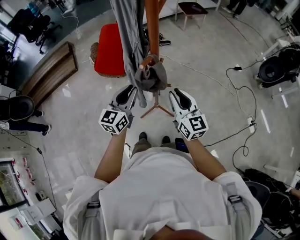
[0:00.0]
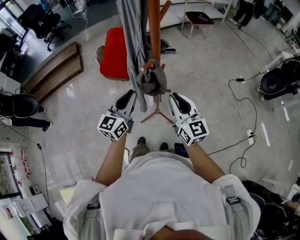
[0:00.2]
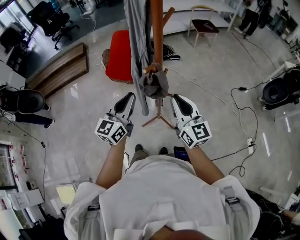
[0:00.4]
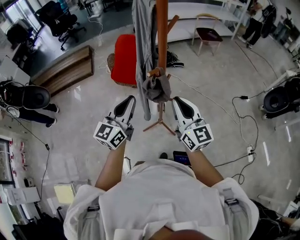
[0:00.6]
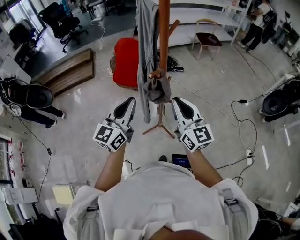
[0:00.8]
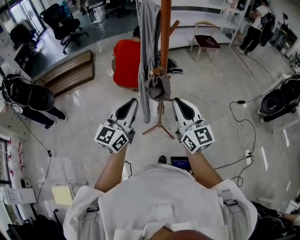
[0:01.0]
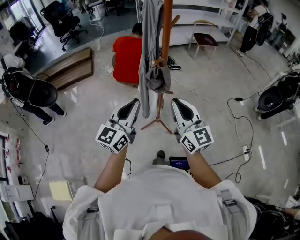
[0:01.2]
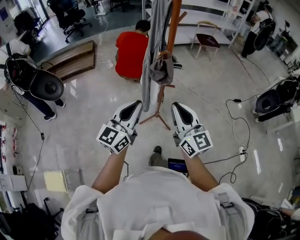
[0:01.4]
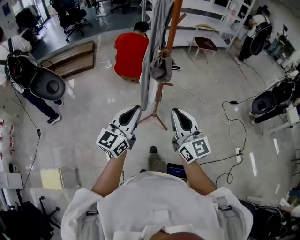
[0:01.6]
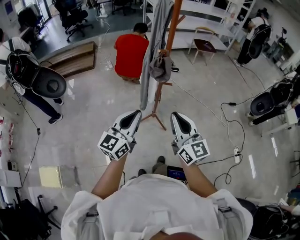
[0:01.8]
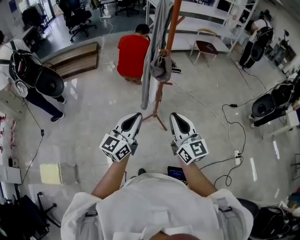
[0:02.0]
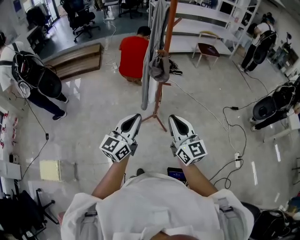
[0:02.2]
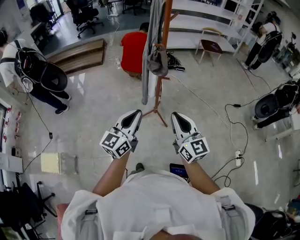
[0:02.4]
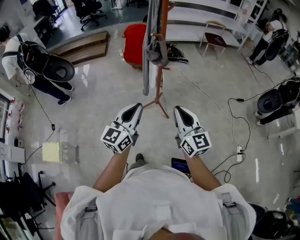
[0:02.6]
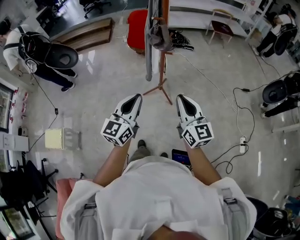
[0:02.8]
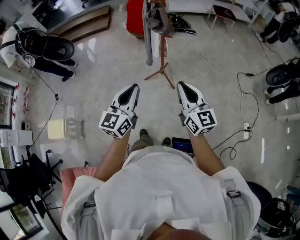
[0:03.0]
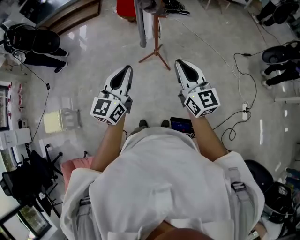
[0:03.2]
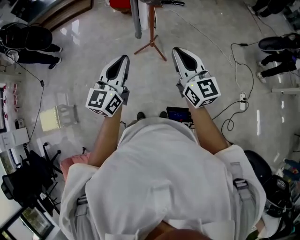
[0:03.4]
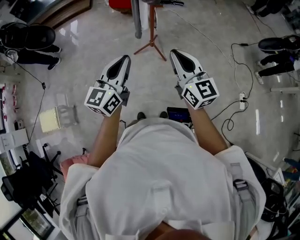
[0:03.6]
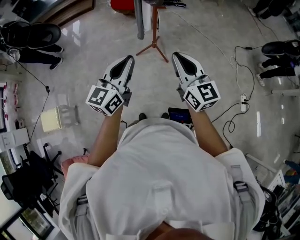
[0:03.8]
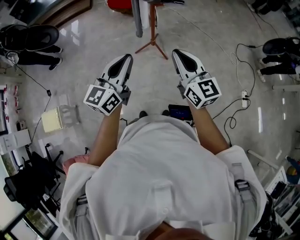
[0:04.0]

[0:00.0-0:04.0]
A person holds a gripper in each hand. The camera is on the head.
0:00.0 to 0:01.4: The two grippers go about 25 cm backward and upward. The right gripper swivels some 20 degrees.
0:01.4 to 0:02.6: Both grippers move backward and to the right, some 20 cm.
0:02.6 to 0:04.0: The grippers move only a little.

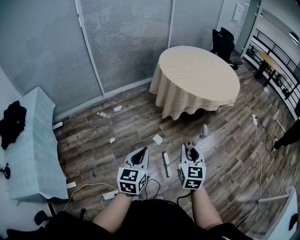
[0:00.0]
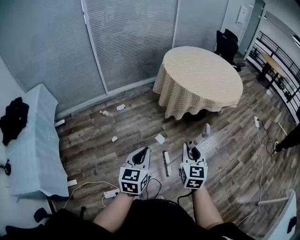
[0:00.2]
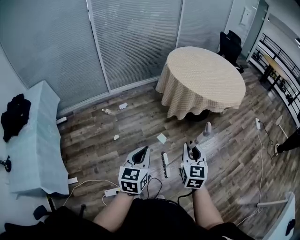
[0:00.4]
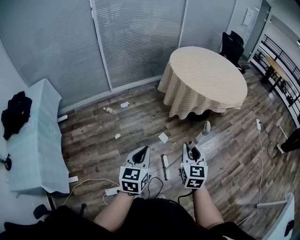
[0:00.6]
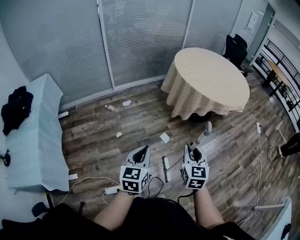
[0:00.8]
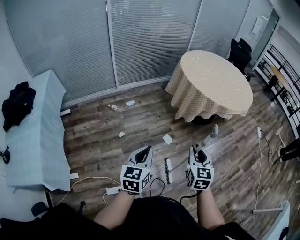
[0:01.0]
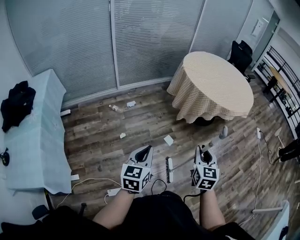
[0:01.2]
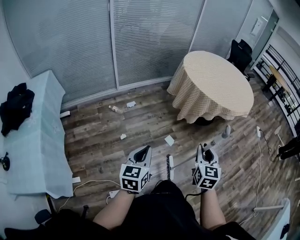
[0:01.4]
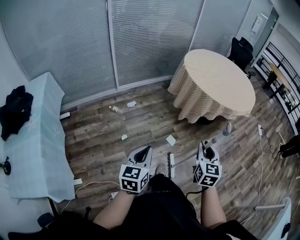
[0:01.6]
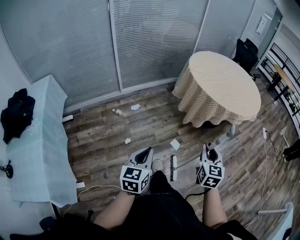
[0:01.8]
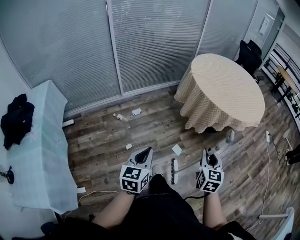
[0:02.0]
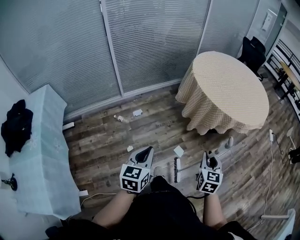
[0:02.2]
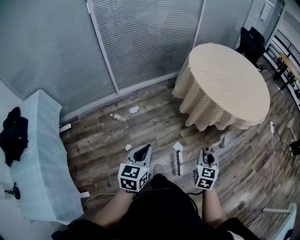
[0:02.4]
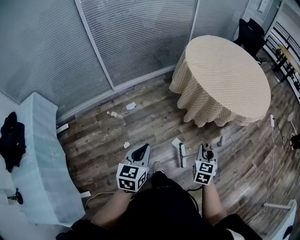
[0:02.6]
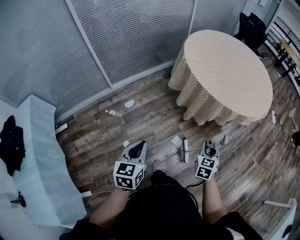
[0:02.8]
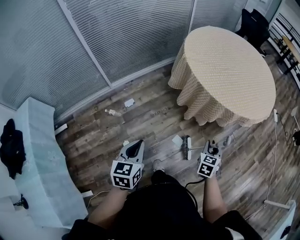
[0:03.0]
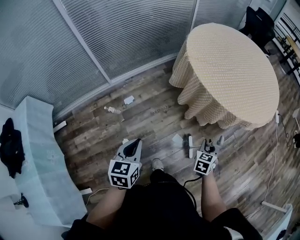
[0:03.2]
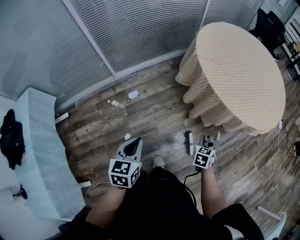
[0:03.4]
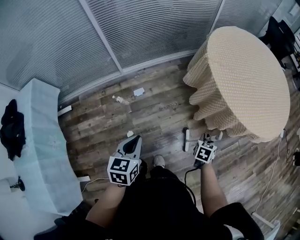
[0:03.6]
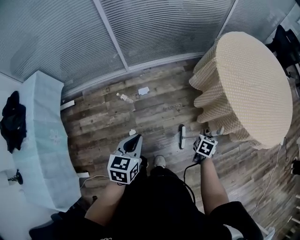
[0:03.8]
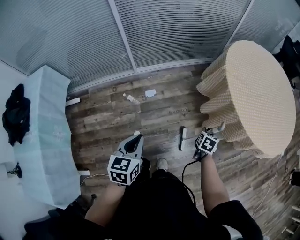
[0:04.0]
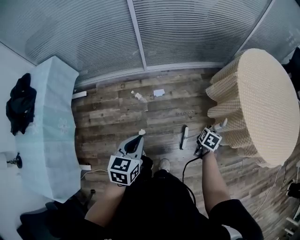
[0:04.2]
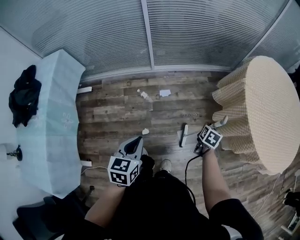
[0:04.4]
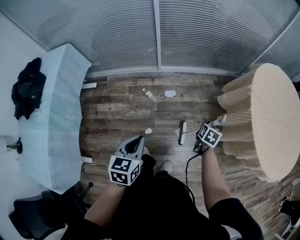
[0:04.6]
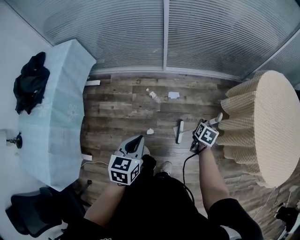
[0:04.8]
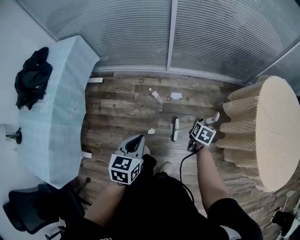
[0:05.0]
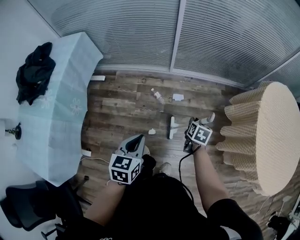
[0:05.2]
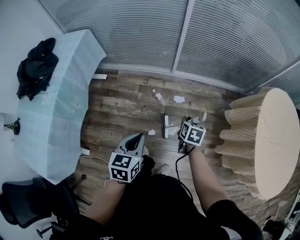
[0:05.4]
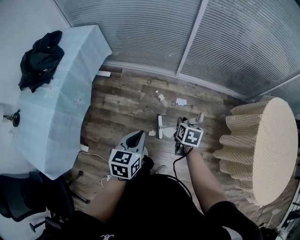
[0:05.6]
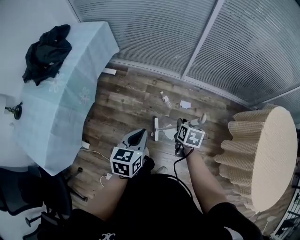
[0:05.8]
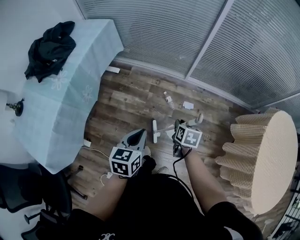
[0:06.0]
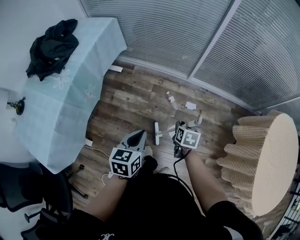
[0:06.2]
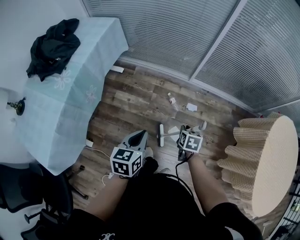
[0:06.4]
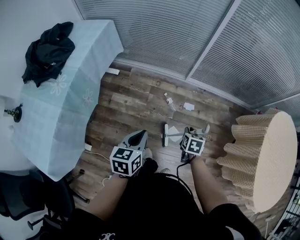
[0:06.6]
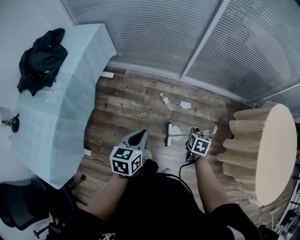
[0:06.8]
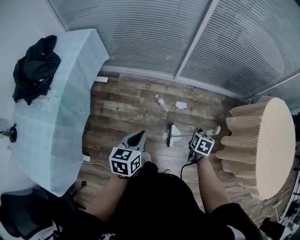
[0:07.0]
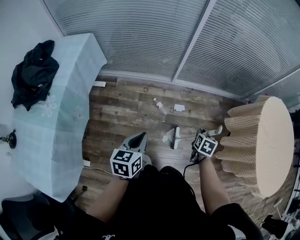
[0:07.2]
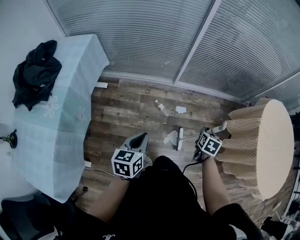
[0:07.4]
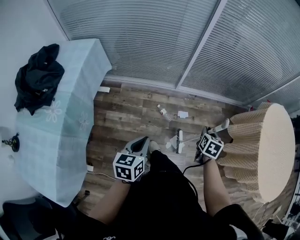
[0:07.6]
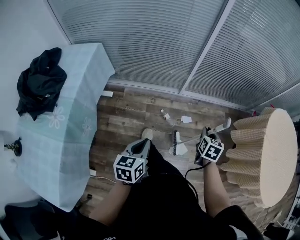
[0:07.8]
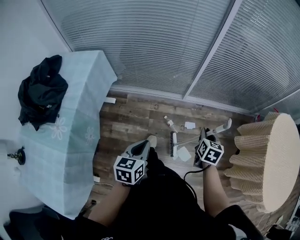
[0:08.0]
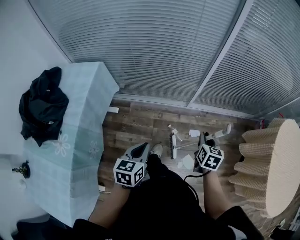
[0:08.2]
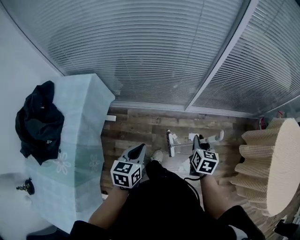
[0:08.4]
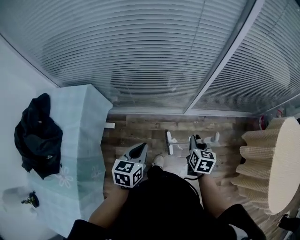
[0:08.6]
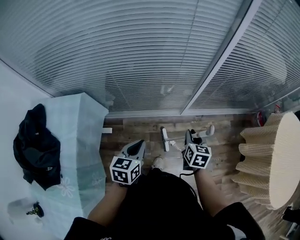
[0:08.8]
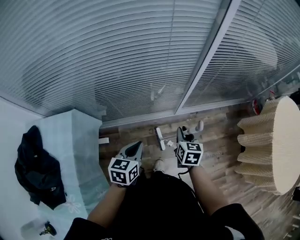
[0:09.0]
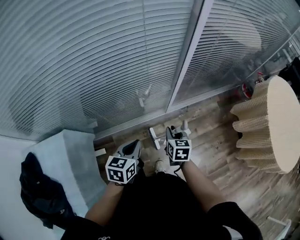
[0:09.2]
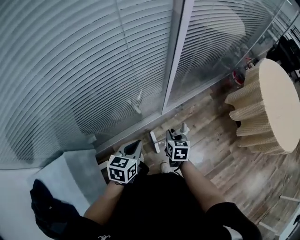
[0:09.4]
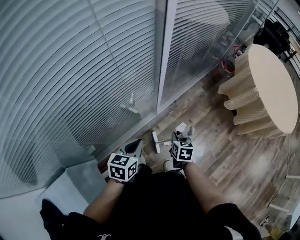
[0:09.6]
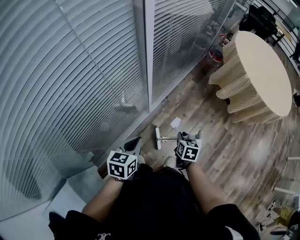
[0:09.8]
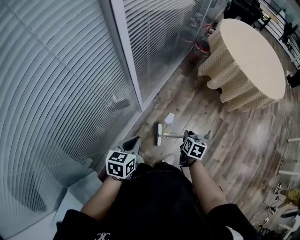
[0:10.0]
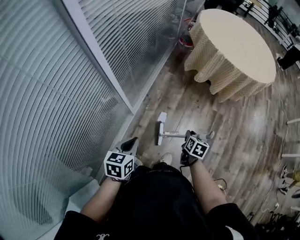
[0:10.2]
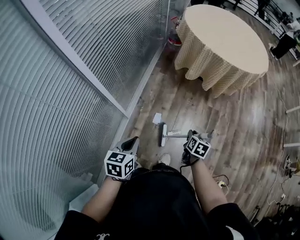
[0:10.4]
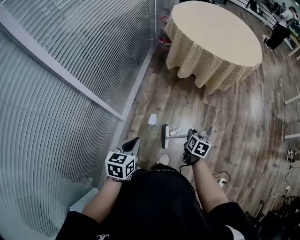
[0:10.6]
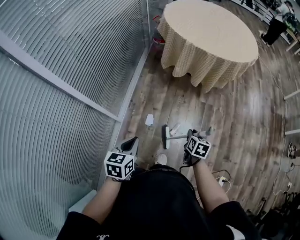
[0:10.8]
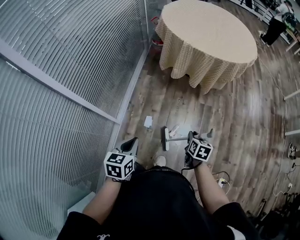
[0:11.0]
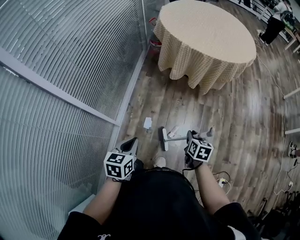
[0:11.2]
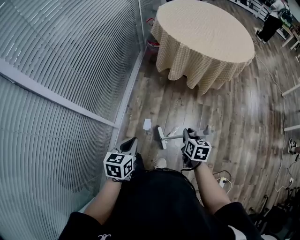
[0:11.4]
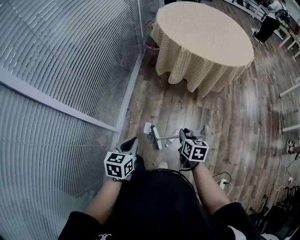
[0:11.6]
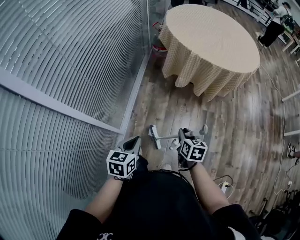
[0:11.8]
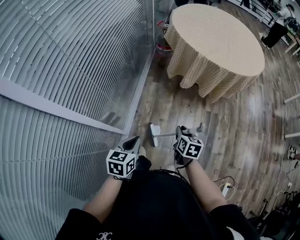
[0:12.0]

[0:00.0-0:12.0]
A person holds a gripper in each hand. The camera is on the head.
0:00.0 to 0:01.6: The right gripper is displaced to the left by approximately 10 cm. Meanwhile the left gripper shifts roughly 20 cm to the left.
0:01.6 to 0:03.0: The left gripper travels forward by some 30 cm; the right gripper heads forward and downward, covering approximately 35 cm, and turns by about 30 degrees.
0:03.0 to 0:04.4: The right gripper ends up approximately 35 cm from where it was, and swivels approximately 30 degrees. Meanwhile the left gripper changes place by approximately 20 cm, and turns by some 20 degrees.
0:04.4 to 0:06.0: The right gripper moves about 40 cm, and swivels approximately 40 degrees. Meanwhile the left gripper moves some 20 cm, and rotates about 20 degrees.
0:06.0 to 0:07.6: The left gripper shifts by some 10 cm. Meanwhile the right gripper moves approximately 15 cm, and swivels roughly 30 degrees.
0:07.6 to 0:09.0: Both grippers travel together forward and to the left, roughly 40 cm.
0:09.0 to 0:10.4: The right gripper shifts by approximately 35 cm, and turns by roughly 80 degrees. The left gripper ends up roughly 20 cm from where it was, and swivels roughly 60 degrees.
0:10.4 to 0:12.0: The left gripper shifts some 15 cm forward. Meanwhile the right gripper moves forward and to the left, some 15 cm.

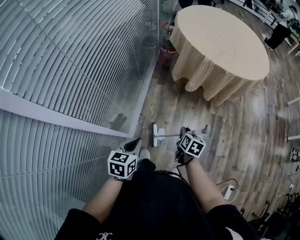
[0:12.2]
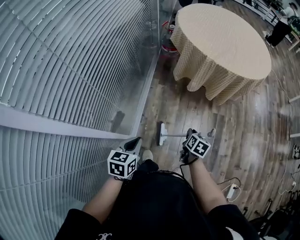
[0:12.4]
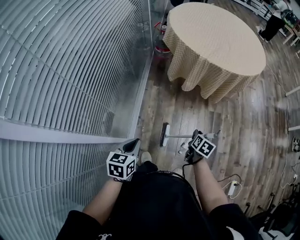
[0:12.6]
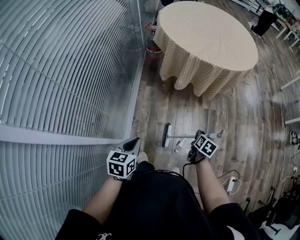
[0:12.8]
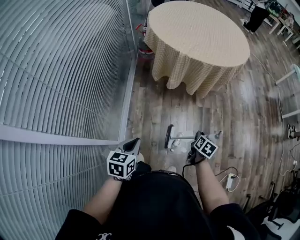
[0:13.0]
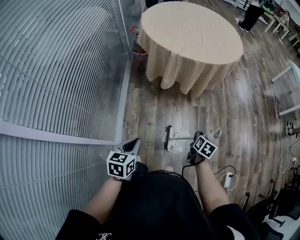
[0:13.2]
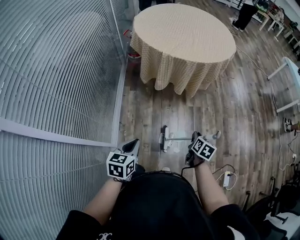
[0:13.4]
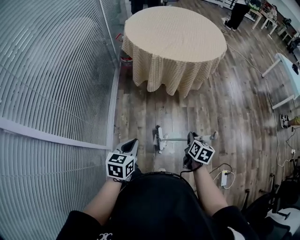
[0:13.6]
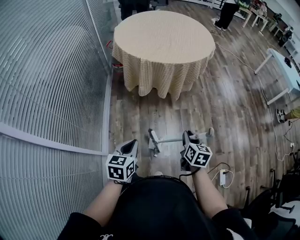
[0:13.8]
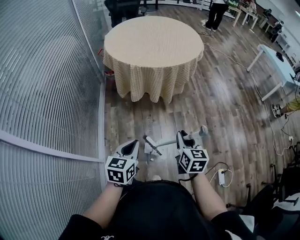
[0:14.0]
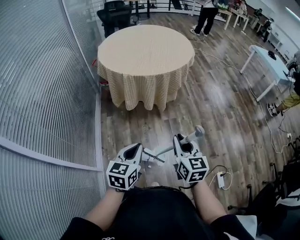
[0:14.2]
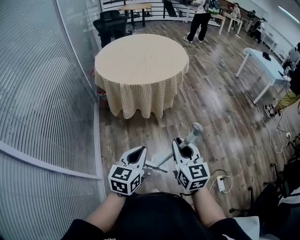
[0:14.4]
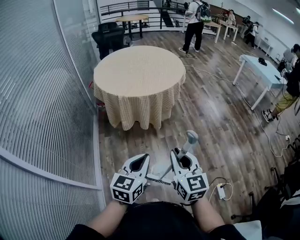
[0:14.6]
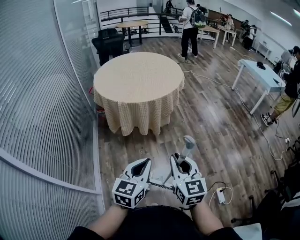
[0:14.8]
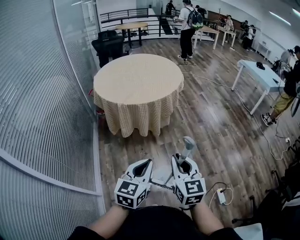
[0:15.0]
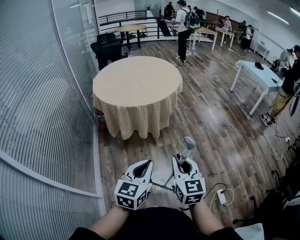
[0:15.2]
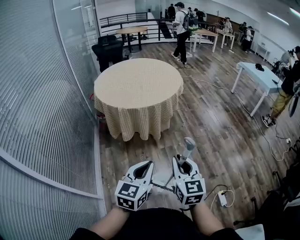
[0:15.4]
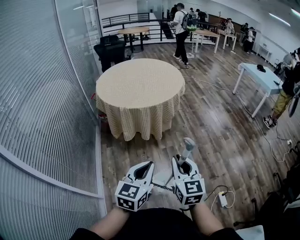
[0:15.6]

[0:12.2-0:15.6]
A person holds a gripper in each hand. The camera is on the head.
0:12.2 to 0:13.8: The right gripper heads to the right and upward, covering roughly 30 cm. Meanwhile the left gripper travels to the right by about 20 cm.
0:13.8 to 0:15.6: The left gripper heads to the right and upward, covering roughly 25 cm, and rotates approximately 30 degrees; the right gripper moves upward, some 20 cm, and changes its angle by roughly 30 degrees.

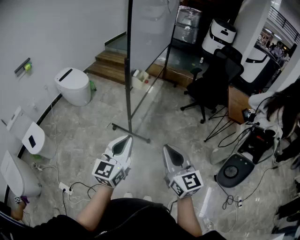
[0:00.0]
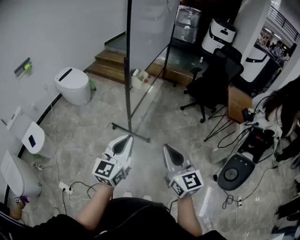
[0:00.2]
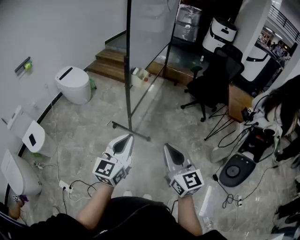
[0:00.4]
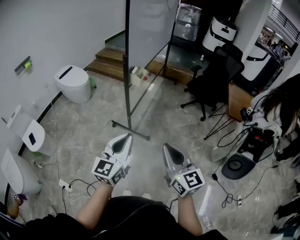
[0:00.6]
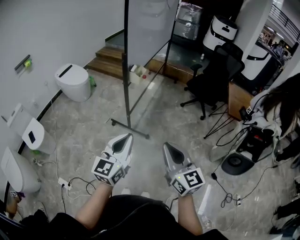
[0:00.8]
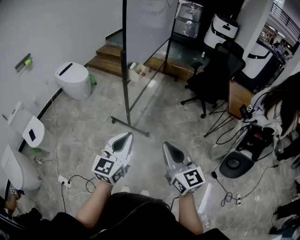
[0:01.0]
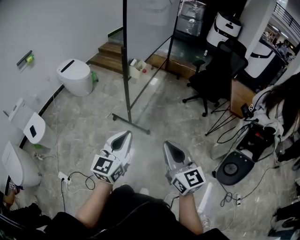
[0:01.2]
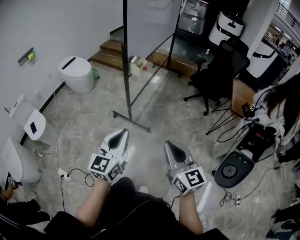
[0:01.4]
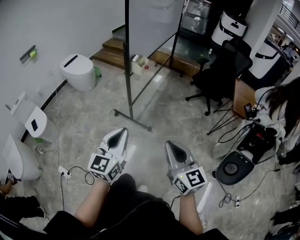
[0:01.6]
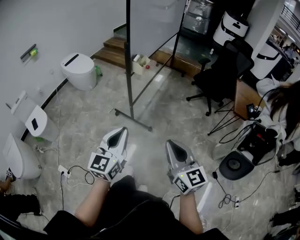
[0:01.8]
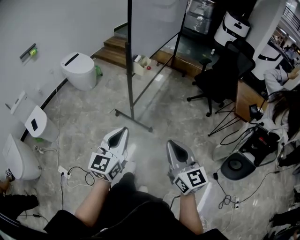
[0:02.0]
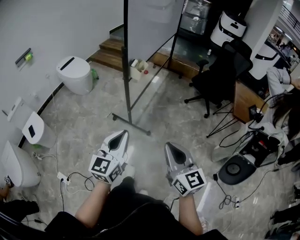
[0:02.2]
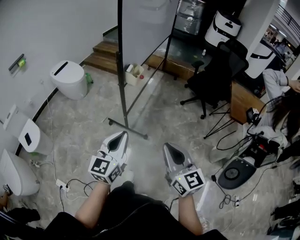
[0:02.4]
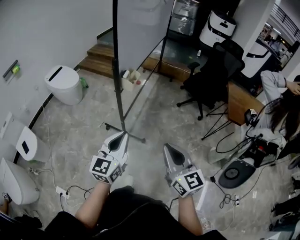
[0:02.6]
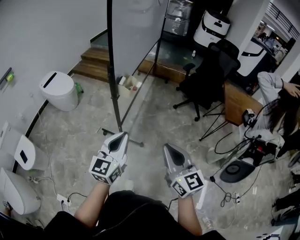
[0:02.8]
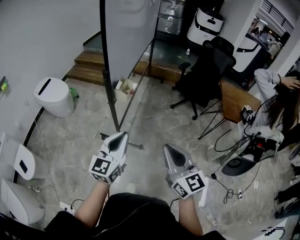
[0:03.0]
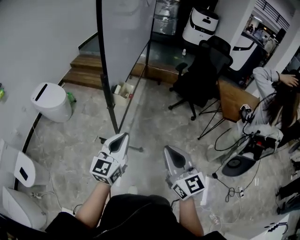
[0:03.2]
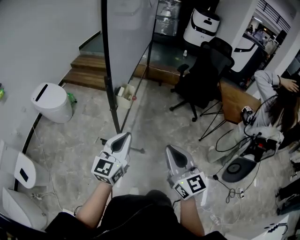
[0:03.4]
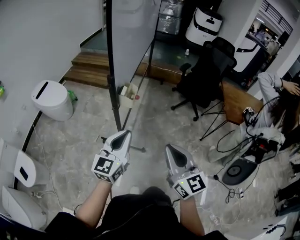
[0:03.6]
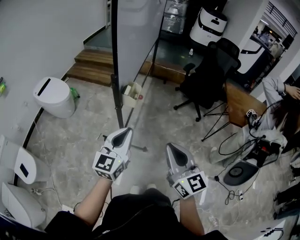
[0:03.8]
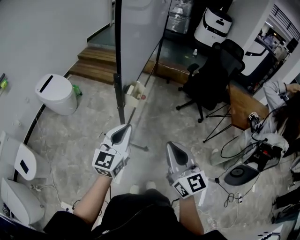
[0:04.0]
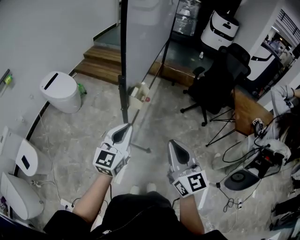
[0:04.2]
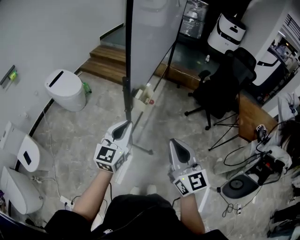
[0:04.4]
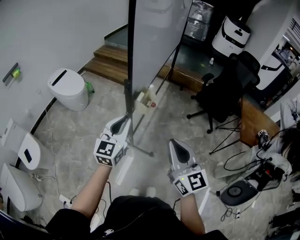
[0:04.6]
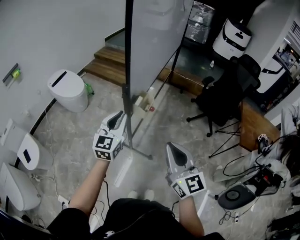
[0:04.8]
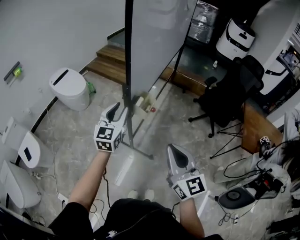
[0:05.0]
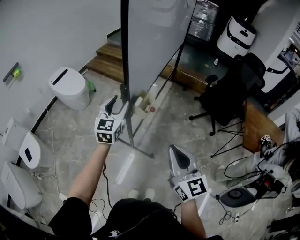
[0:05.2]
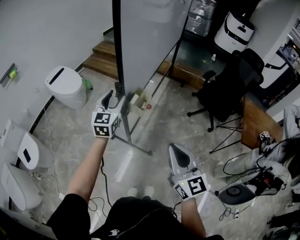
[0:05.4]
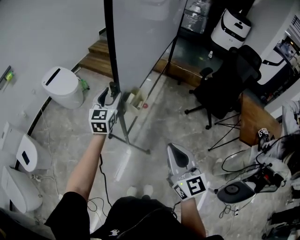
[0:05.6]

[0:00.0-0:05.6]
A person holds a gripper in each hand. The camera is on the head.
0:00.0 to 0:01.4: The left gripper ends up some 5 cm from where it was. The right gripper moves to the right, approximately 5 cm.
0:01.4 to 0:02.8: The two grippers go roughly 20 cm forward.
0:02.8 to 0:04.2: The two grippers go approximately 15 cm forward and to the left.
0:04.2 to 0:05.6: The right gripper travels forward by roughly 5 cm; the left gripper goes roughly 25 cm forward, swivels approximately 20 degrees, and opens up.
